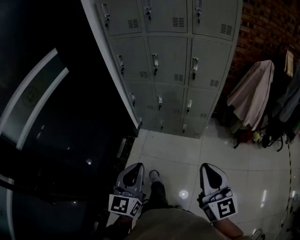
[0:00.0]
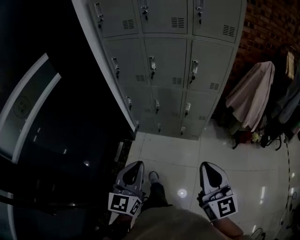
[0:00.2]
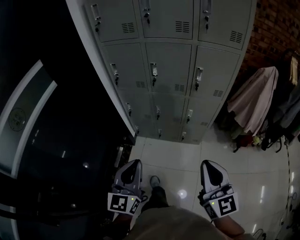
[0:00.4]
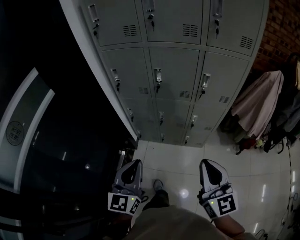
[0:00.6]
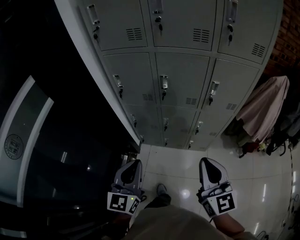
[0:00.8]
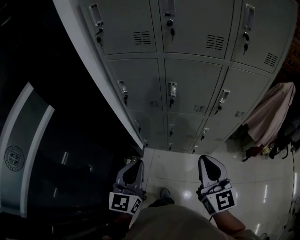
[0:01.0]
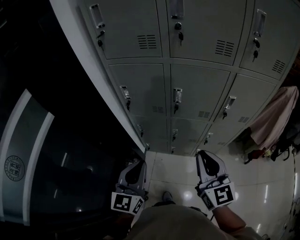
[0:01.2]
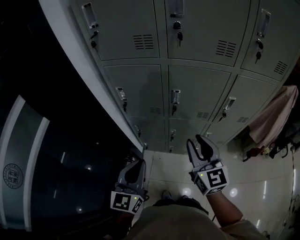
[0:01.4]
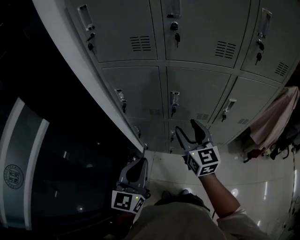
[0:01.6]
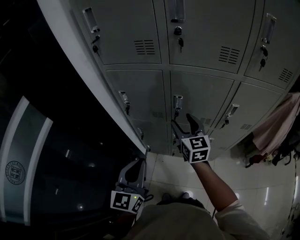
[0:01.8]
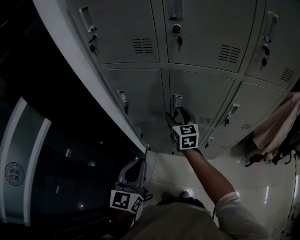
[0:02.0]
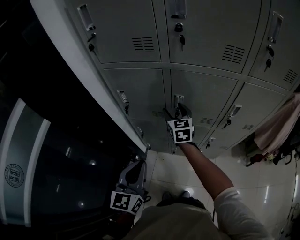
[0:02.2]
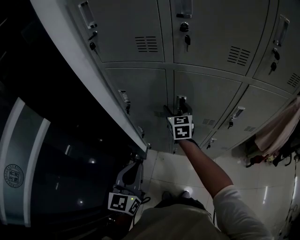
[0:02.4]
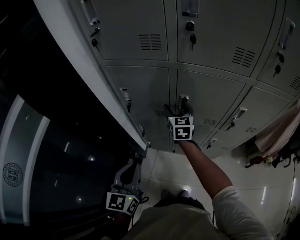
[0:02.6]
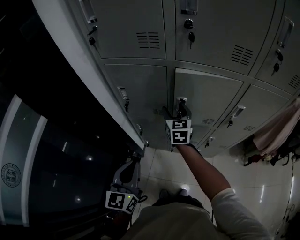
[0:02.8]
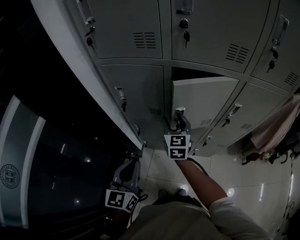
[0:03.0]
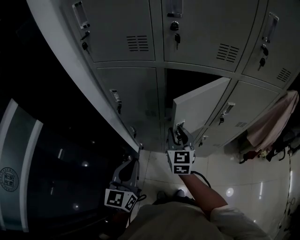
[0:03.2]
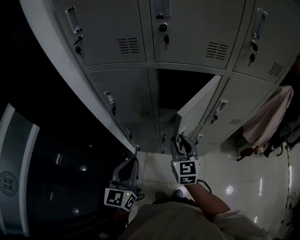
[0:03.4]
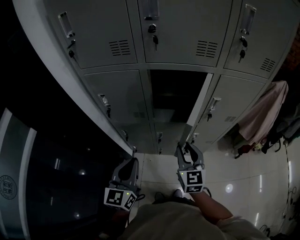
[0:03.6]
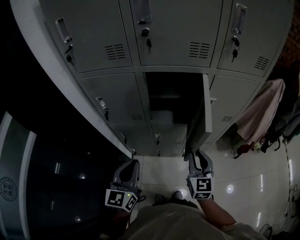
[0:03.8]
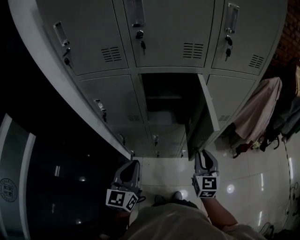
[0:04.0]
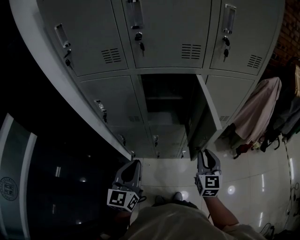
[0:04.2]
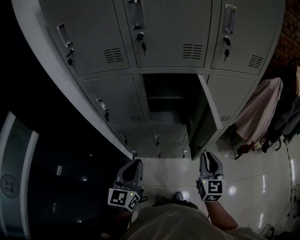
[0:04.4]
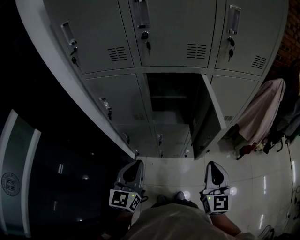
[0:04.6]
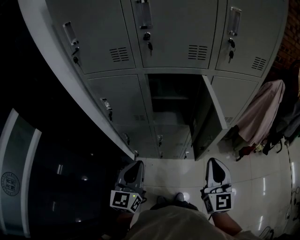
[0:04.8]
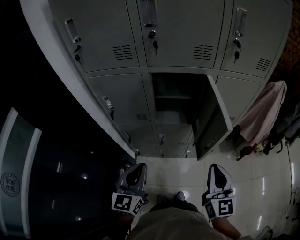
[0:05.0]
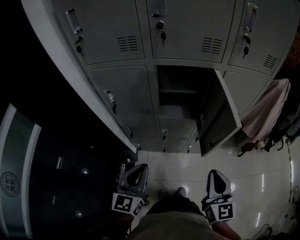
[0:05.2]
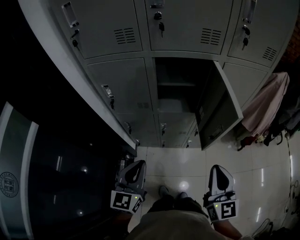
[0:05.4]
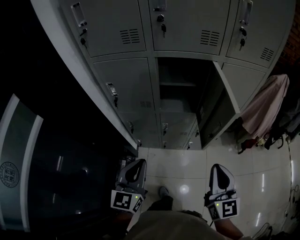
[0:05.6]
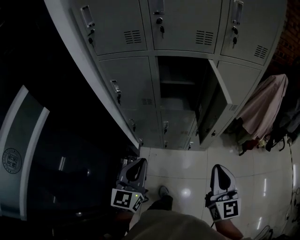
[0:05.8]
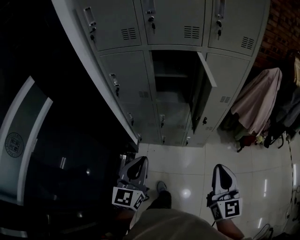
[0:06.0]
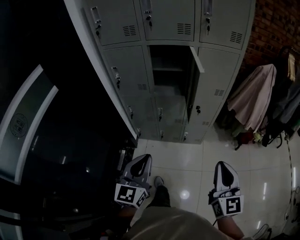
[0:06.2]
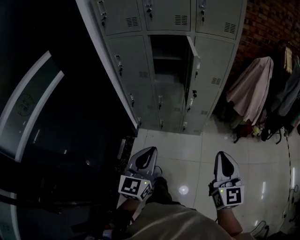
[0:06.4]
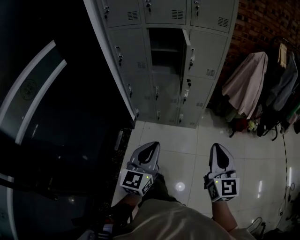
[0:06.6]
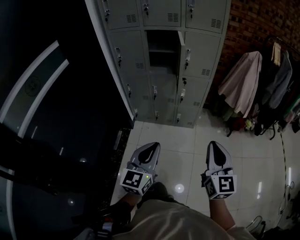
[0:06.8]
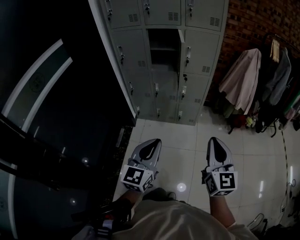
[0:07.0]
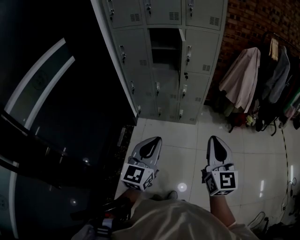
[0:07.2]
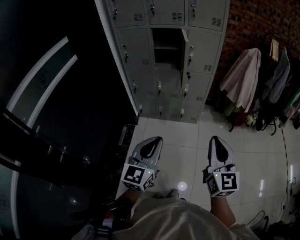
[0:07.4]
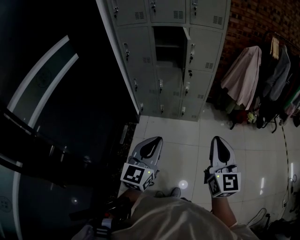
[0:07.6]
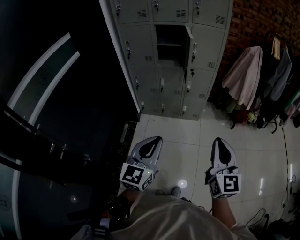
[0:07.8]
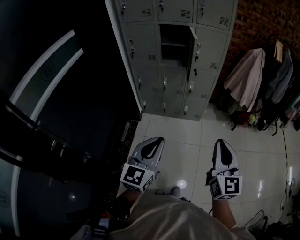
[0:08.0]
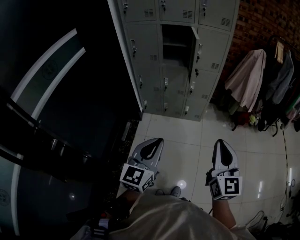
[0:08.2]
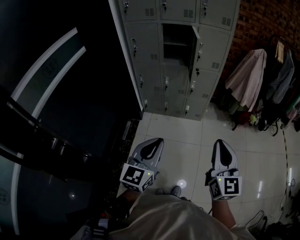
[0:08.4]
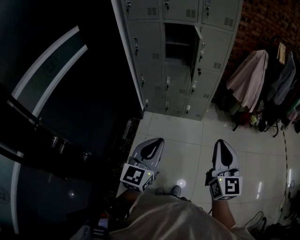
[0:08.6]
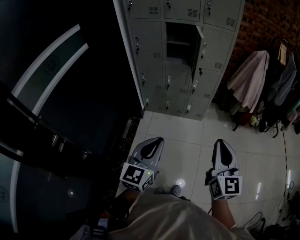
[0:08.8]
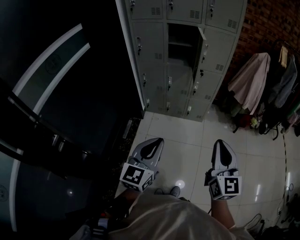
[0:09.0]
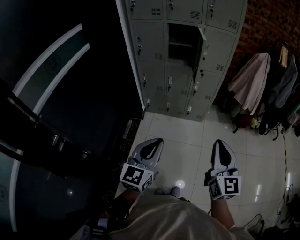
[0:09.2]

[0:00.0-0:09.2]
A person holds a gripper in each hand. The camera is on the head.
0:00.0 to 0:01.6: The two grippers travel together, forward, some 50 cm. The right gripper opens its fingers.
0:01.6 to 0:03.0: The left gripper moves roughly 5 cm, while the right gripper heads forward, downward and to the left, covering some 15 cm.
0:03.0 to 0:04.6: The left gripper is displaced to the right by approximately 10 cm, while the right gripper travels to the right and backward by approximately 35 cm, and closes up.
0:04.6 to 0:06.2: Both grippers travel together backward, roughly 25 cm.
0:06.2 to 0:07.6: The right gripper goes some 30 cm backward and upward. Meanwhile the left gripper shifts about 25 cm backward.
0:07.6 to 0:09.2: The left gripper shifts by approximately 5 cm.

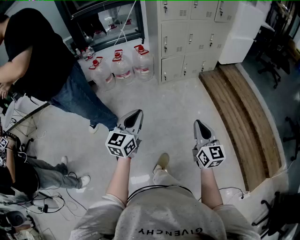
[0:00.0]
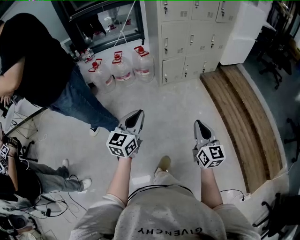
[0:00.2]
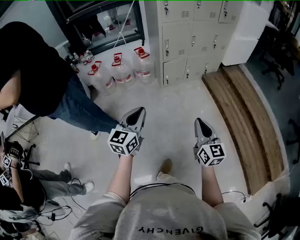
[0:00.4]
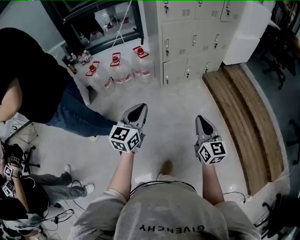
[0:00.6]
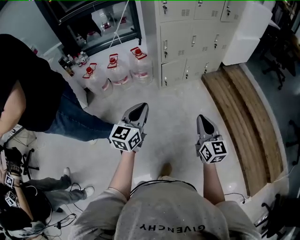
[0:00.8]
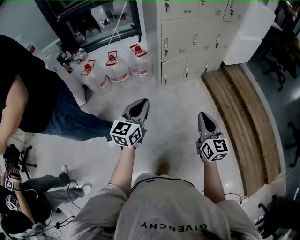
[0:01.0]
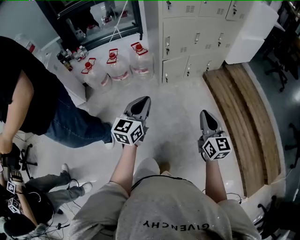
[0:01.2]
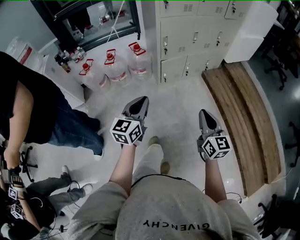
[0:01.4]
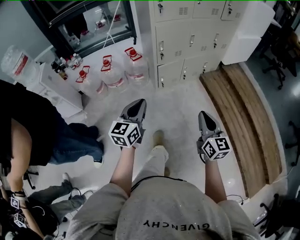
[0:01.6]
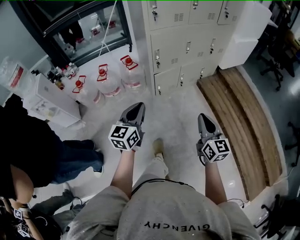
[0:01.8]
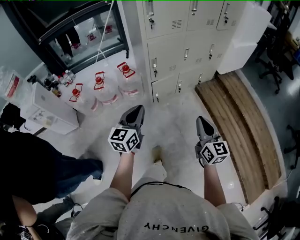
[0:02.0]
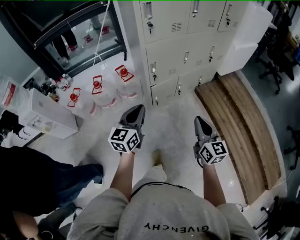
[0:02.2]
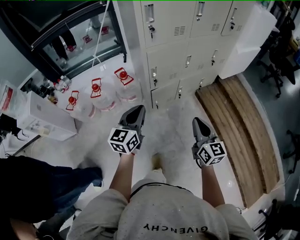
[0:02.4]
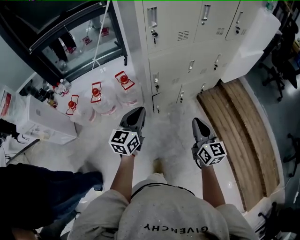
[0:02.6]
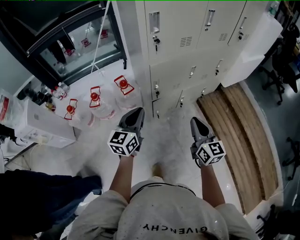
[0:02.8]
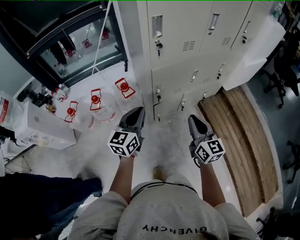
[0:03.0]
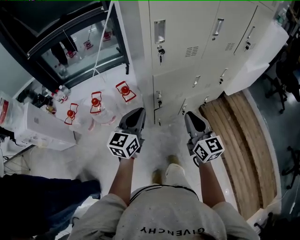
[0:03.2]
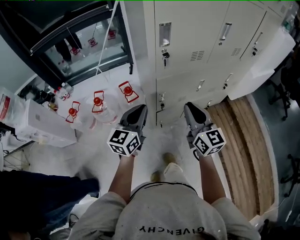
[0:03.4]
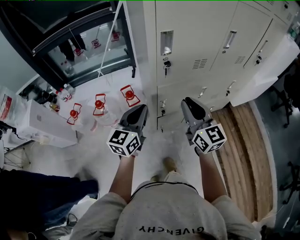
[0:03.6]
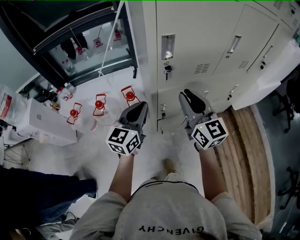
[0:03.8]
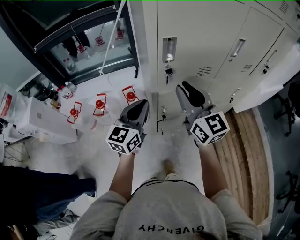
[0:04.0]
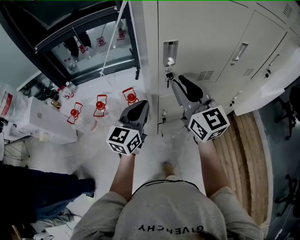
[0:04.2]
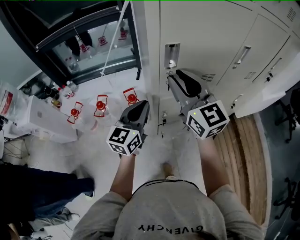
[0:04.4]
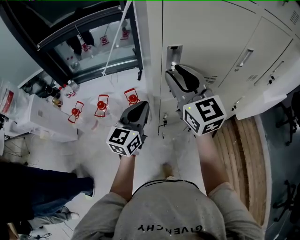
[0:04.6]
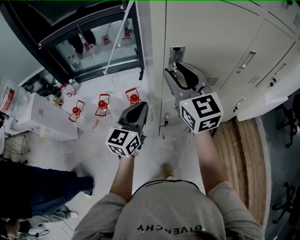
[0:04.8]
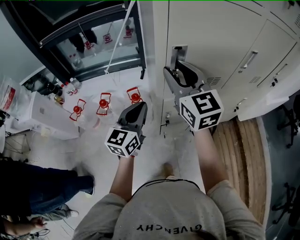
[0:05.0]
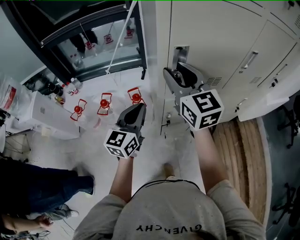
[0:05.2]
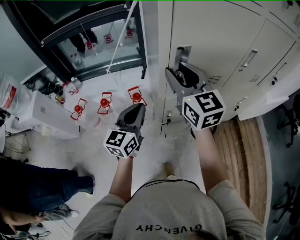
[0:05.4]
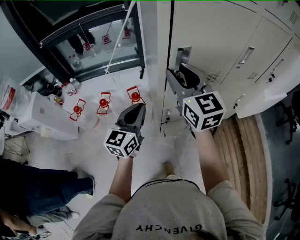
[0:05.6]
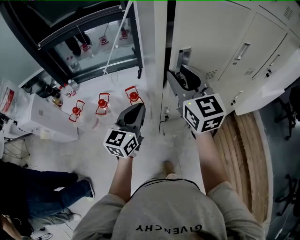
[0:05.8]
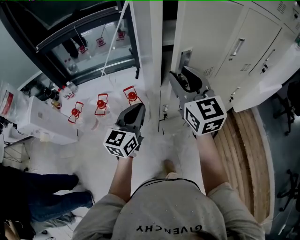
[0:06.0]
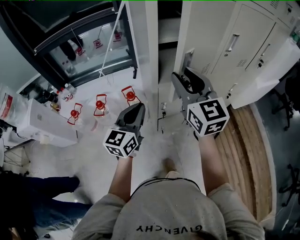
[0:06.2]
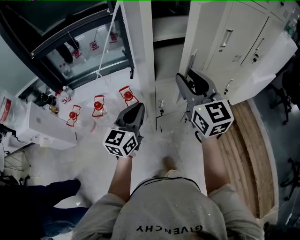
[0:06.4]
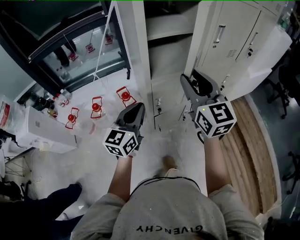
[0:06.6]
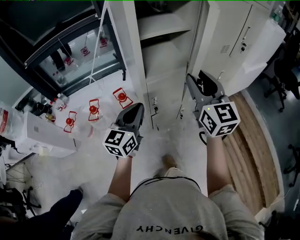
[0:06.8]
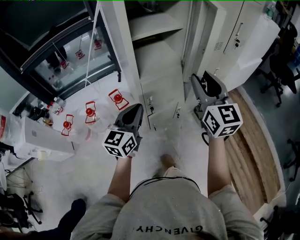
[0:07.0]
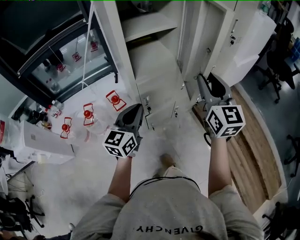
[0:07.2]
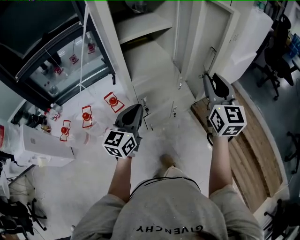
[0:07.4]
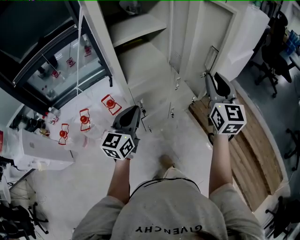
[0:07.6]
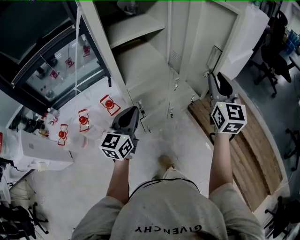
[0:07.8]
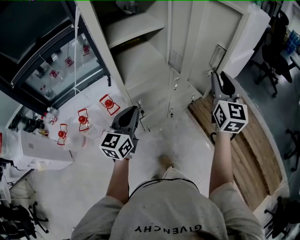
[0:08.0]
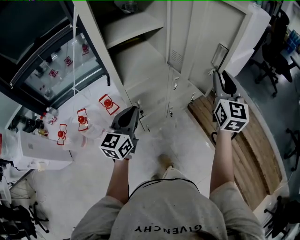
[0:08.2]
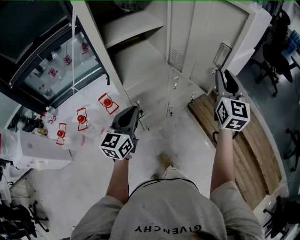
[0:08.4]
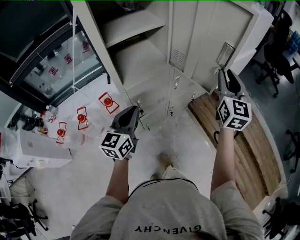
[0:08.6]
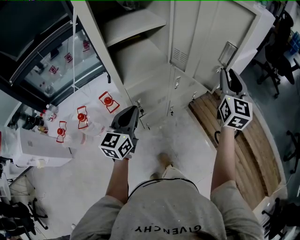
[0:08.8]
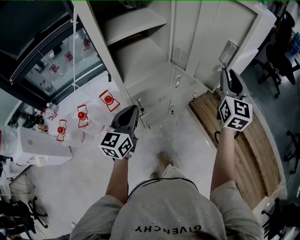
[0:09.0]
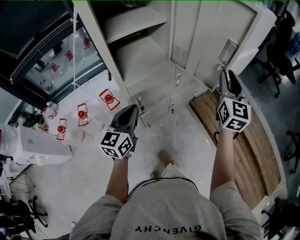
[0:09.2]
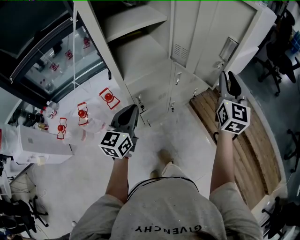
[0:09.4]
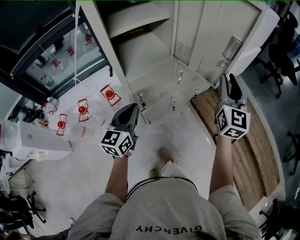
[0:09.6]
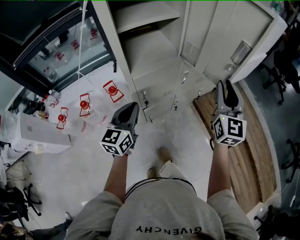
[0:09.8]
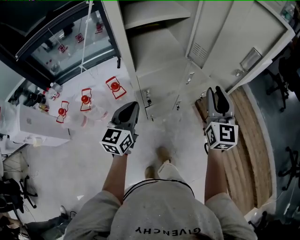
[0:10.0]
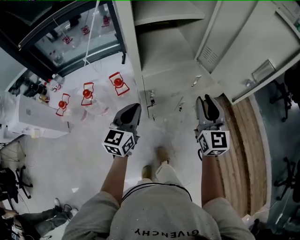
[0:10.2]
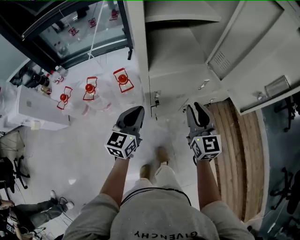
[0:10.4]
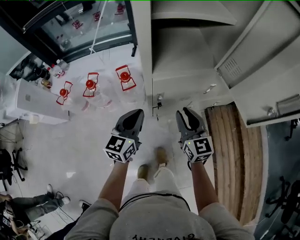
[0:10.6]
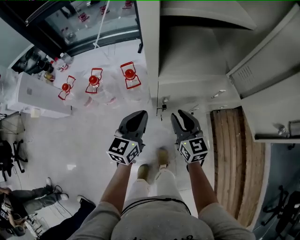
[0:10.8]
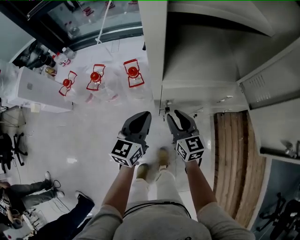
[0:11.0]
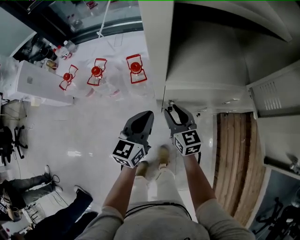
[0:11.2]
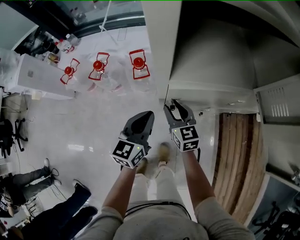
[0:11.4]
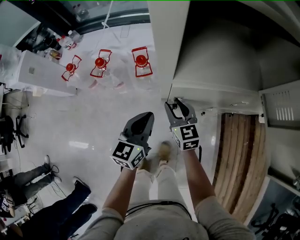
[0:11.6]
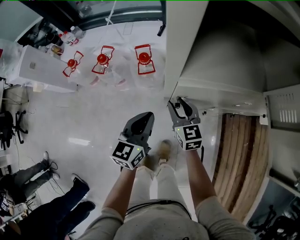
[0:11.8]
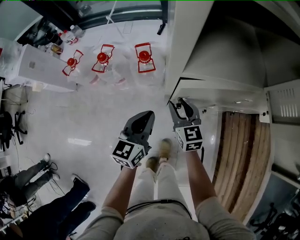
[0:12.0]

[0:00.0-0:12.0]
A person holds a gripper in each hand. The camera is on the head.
0:00.0 to 0:01.6: Both grippers travel together forward, approximately 30 cm.
0:01.6 to 0:03.0: Both grippers travel together forward, roughly 35 cm.
0:03.0 to 0:04.4: The right gripper goes some 30 cm forward and upward, swivels some 30 degrees, and opens its fingers. Meanwhile the left gripper heads forward, covering approximately 15 cm.
0:04.4 to 0:06.0: The left gripper changes place by approximately 5 cm.
0:06.0 to 0:07.6: The left gripper is displaced to the right by some 10 cm; the right gripper shifts approximately 30 cm to the right, and changes its angle by approximately 30 degrees.
0:07.6 to 0:09.0: The right gripper goes some 10 cm forward and to the right.
0:09.0 to 0:10.4: The left gripper travels downward and to the left by approximately 10 cm. Meanwhile the right gripper is displaced to the left and downward by approximately 30 cm, and rotates roughly 40 degrees.
0:10.4 to 0:12.0: The right gripper travels downward, to the left and forward by roughly 30 cm, and turns by some 30 degrees. Meanwhile the left gripper heads downward, covering some 15 cm.

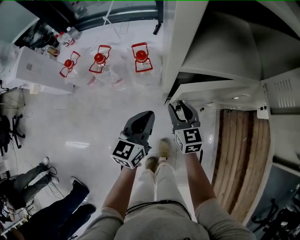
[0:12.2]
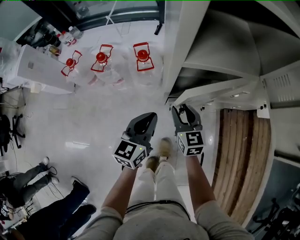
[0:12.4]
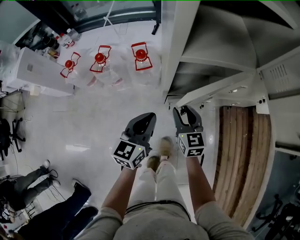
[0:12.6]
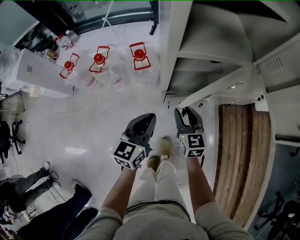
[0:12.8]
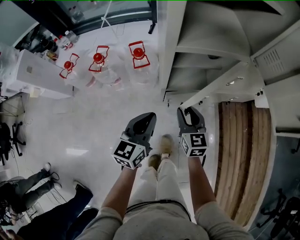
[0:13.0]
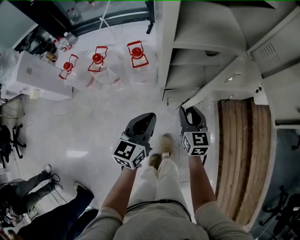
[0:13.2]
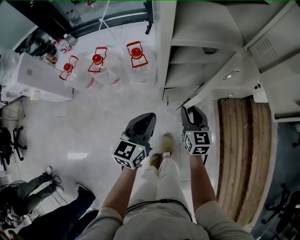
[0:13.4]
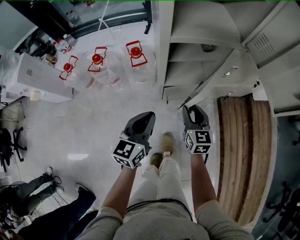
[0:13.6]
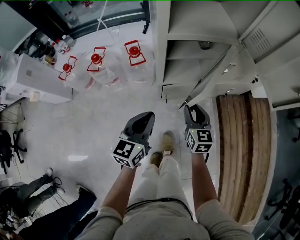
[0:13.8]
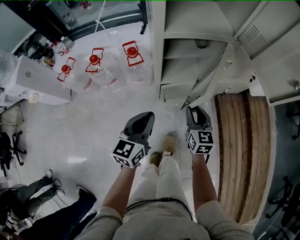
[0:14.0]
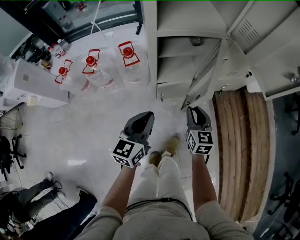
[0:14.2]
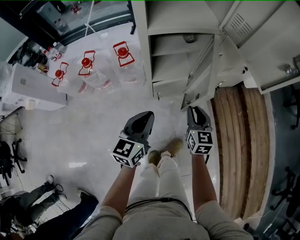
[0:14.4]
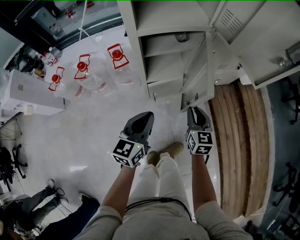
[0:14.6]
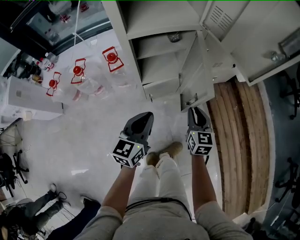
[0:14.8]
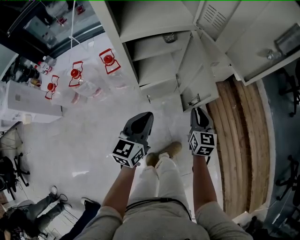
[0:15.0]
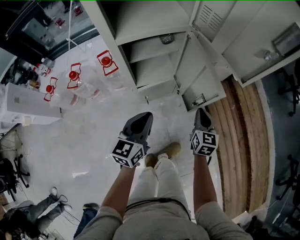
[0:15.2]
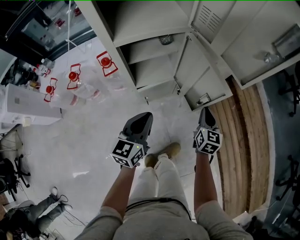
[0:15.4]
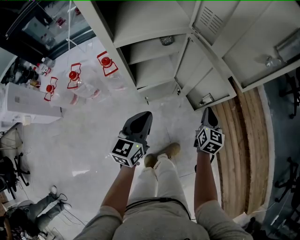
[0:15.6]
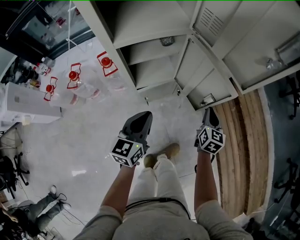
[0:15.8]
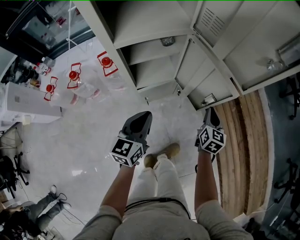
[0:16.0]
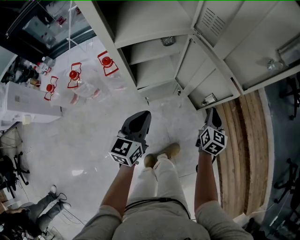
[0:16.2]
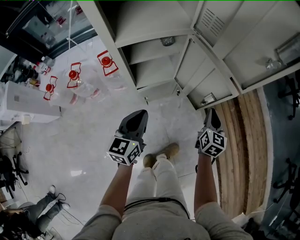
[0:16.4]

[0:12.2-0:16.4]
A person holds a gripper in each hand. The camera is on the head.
0:12.2 to 0:13.6: The left gripper goes approximately 10 cm backward. The right gripper goes about 15 cm backward and to the right.
0:13.6 to 0:15.0: The left gripper shifts about 10 cm to the right; the right gripper travels to the right by some 15 cm.
0:15.0 to 0:16.4: The right gripper heads to the right, covering approximately 10 cm.
